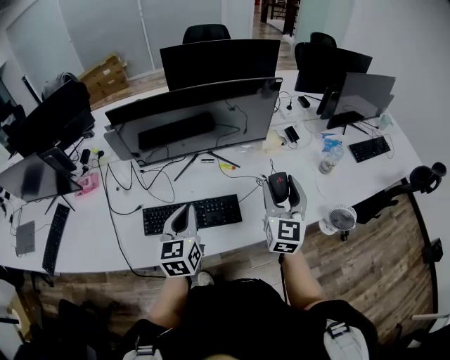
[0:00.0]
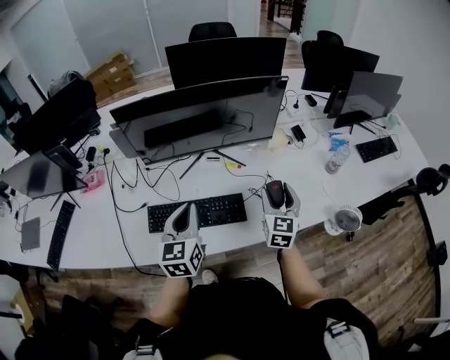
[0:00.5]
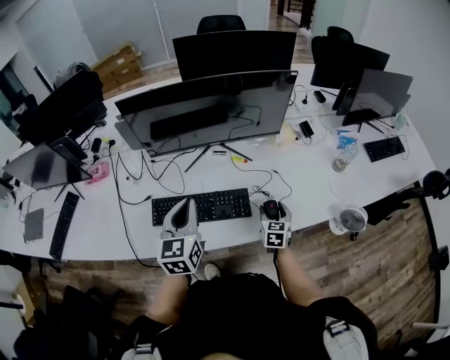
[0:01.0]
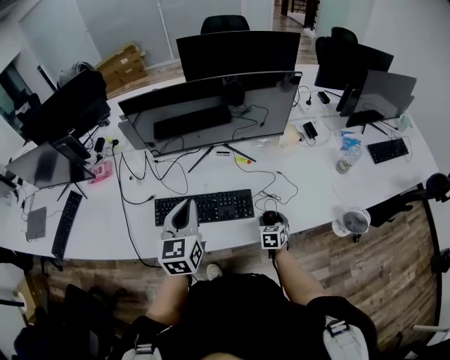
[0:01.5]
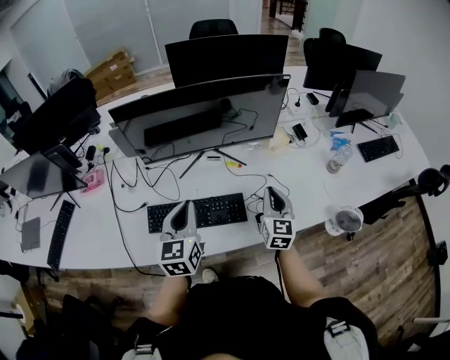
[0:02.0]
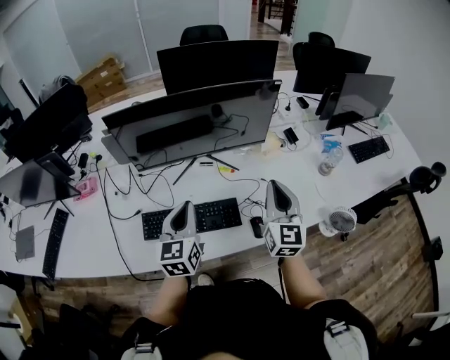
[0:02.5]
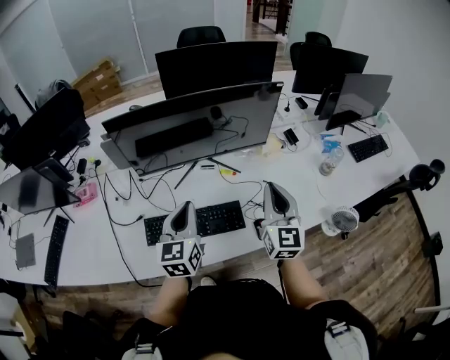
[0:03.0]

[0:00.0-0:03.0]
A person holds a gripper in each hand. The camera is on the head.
0.0 to 1.5 s: The right gripper travels downward by approximately 35 cm, and tips its fingers downward by about 50 degrees.
1.5 to 3.0 s: The right gripper is displaced upward by approximately 35 cm, tips its fingers upward by some 50 degrees, and closes its fingers.

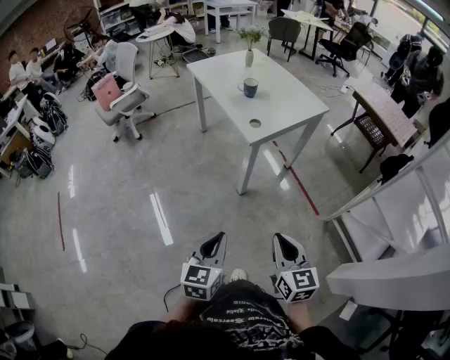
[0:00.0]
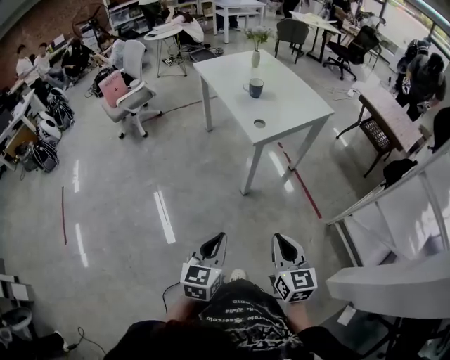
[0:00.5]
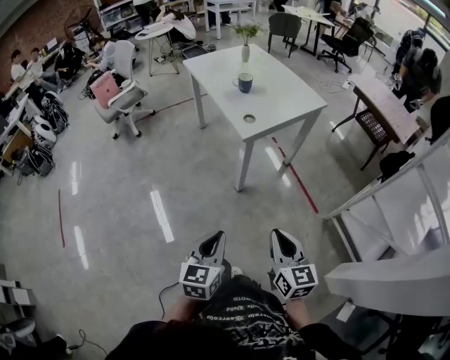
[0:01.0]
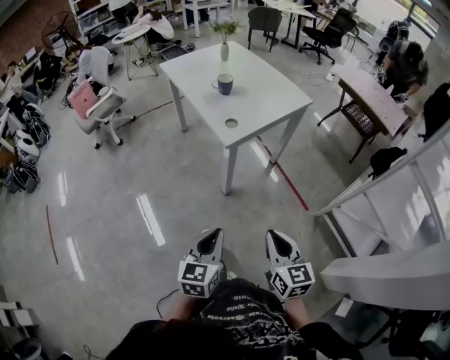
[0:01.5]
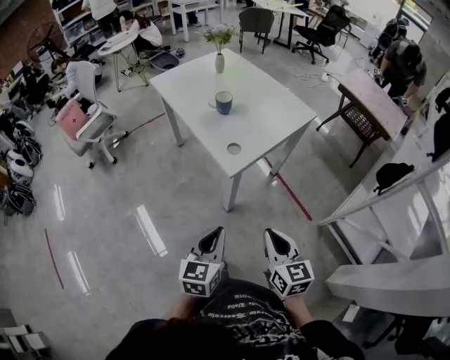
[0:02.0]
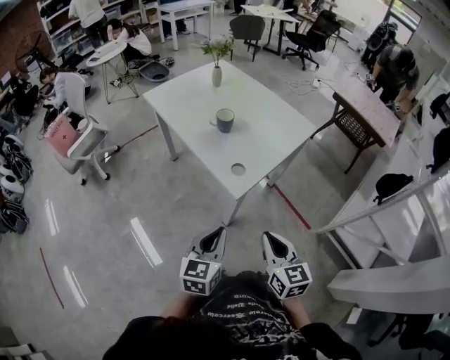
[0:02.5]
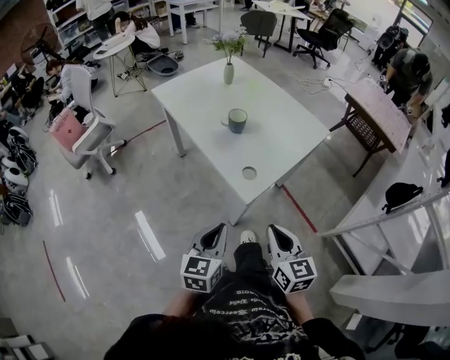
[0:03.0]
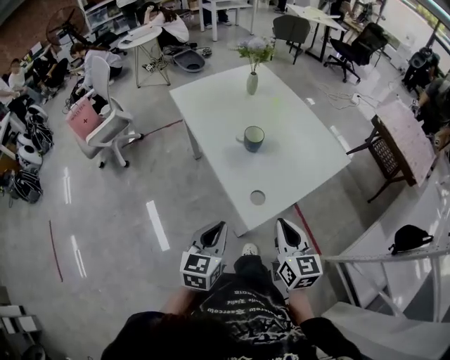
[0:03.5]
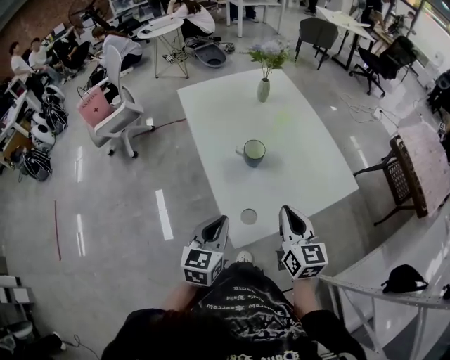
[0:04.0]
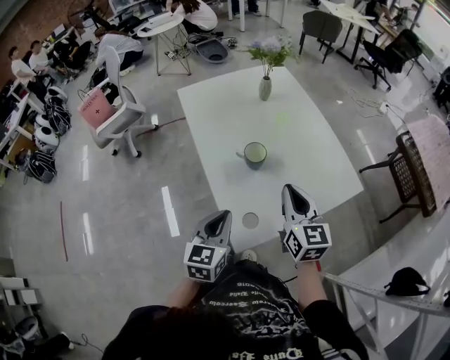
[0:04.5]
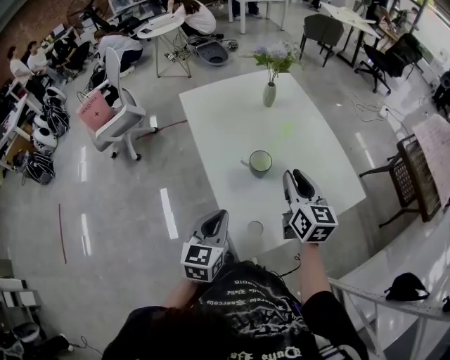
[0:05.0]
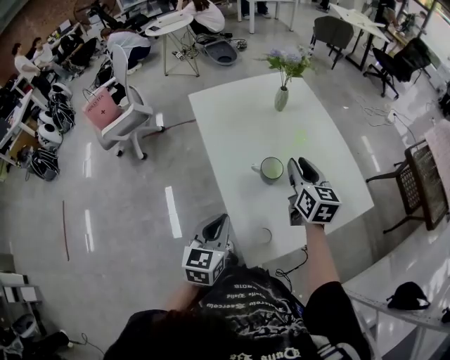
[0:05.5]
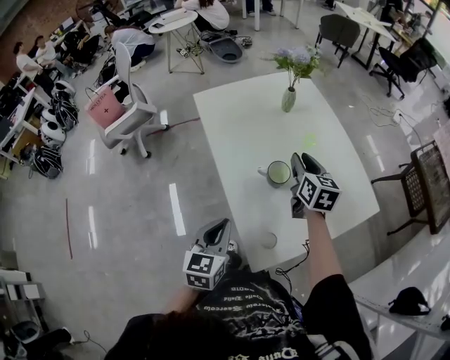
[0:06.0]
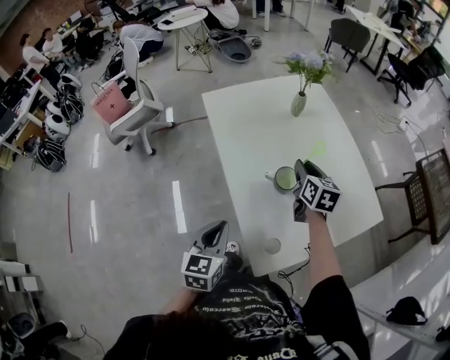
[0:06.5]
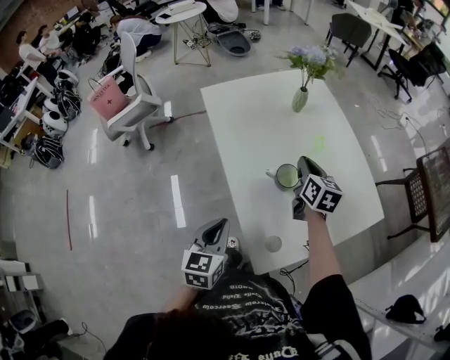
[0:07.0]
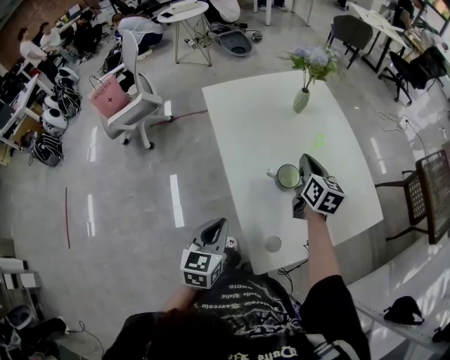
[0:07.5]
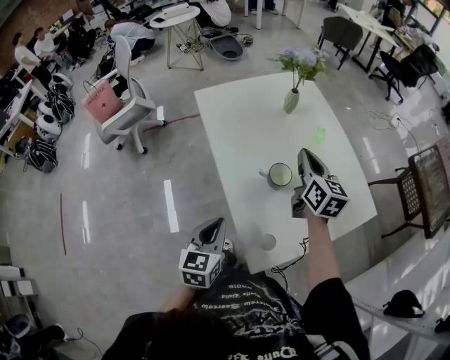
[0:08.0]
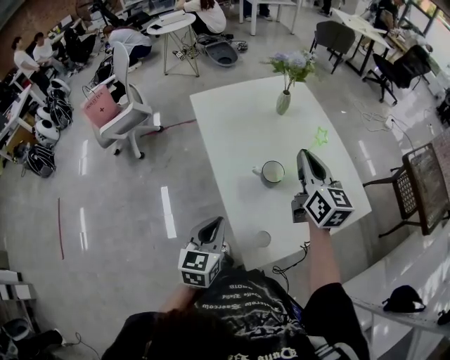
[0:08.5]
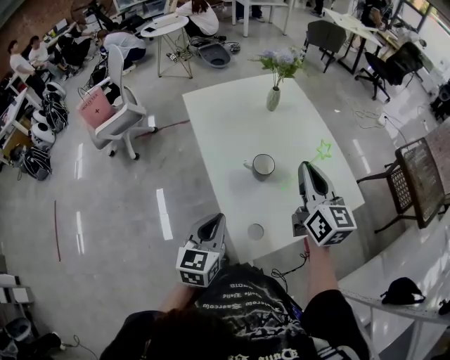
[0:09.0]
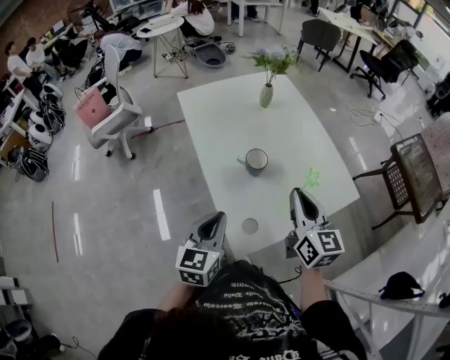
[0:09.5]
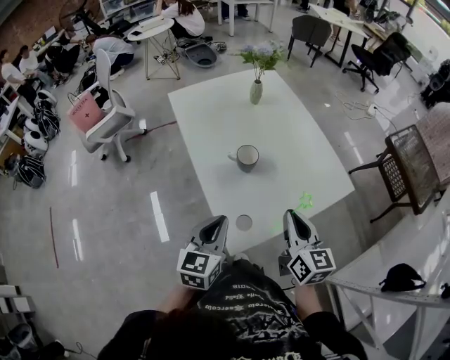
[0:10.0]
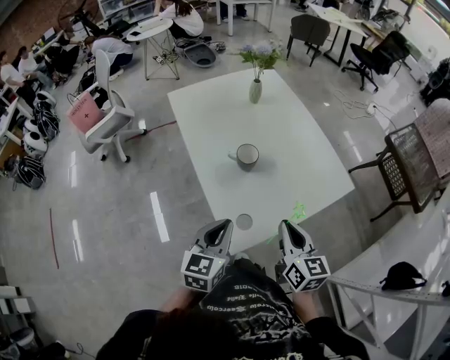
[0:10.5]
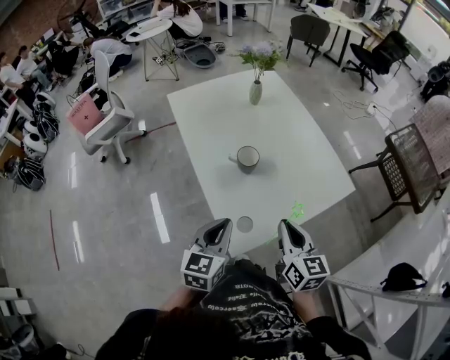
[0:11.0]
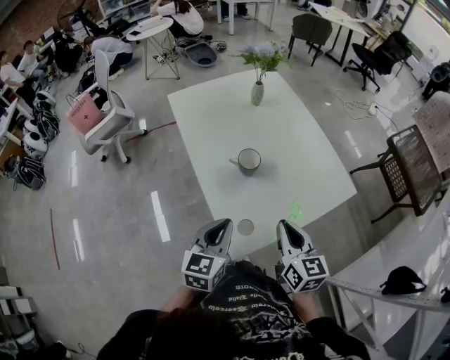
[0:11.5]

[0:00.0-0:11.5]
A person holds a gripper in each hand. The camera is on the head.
0.0 to 2.0 s: Both grippers travel together forward, roughly 35 cm.
2.0 to 4.0 s: Both grippers are carried forward, about 50 cm.
4.0 to 6.0 s: The right gripper shifts about 30 cm forward, and opens its fingers; the left gripper moves forward and to the left, about 15 cm.
6.0 to 7.5 s: The left gripper moves some 5 cm, while the right gripper closes up.
7.5 to 9.5 s: The left gripper moves backward, to the right and upward, roughly 15 cm; the right gripper shifts some 30 cm backward and upward.
9.5 to 11.5 s: The right gripper moves downward and backward, about 10 cm.

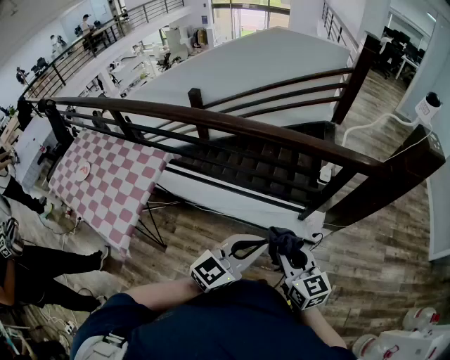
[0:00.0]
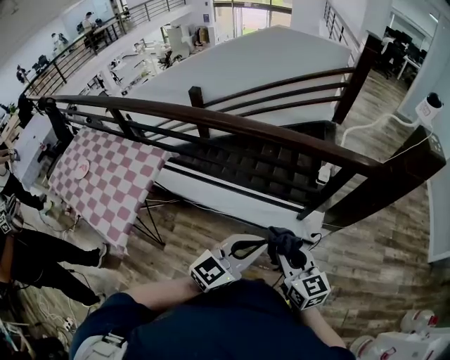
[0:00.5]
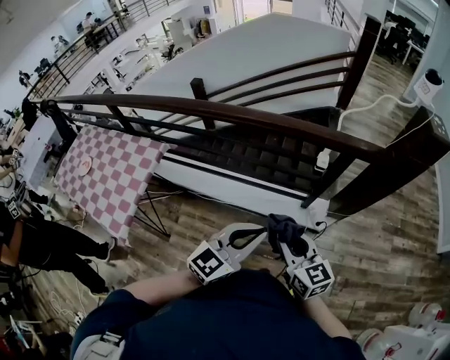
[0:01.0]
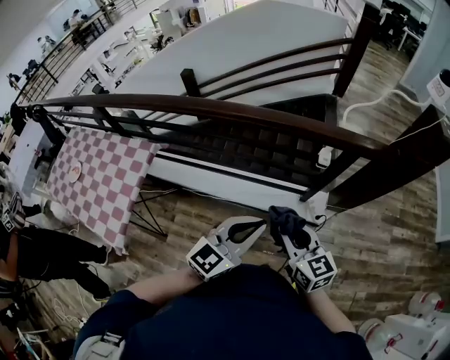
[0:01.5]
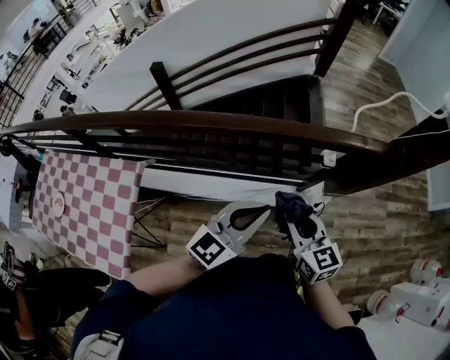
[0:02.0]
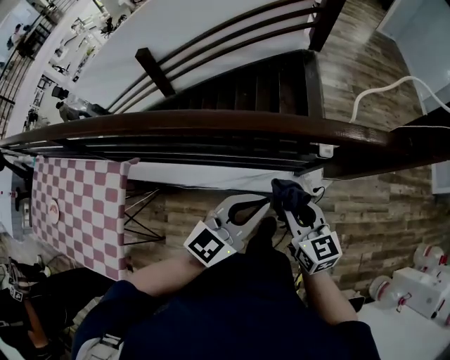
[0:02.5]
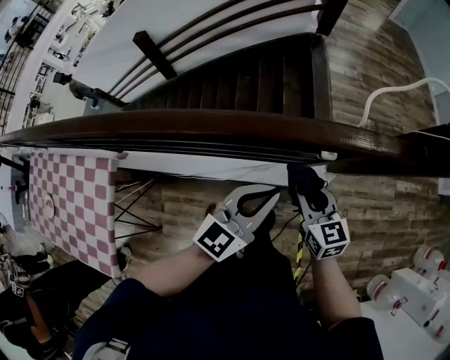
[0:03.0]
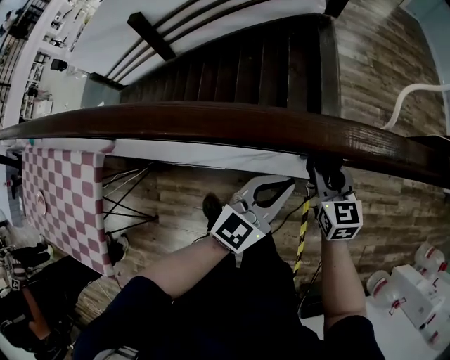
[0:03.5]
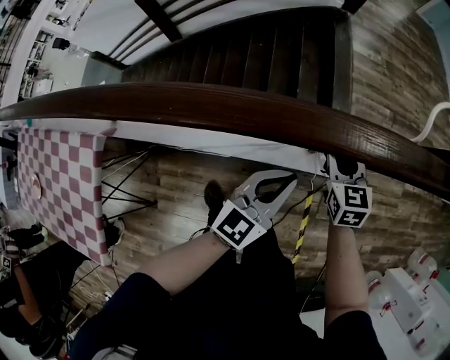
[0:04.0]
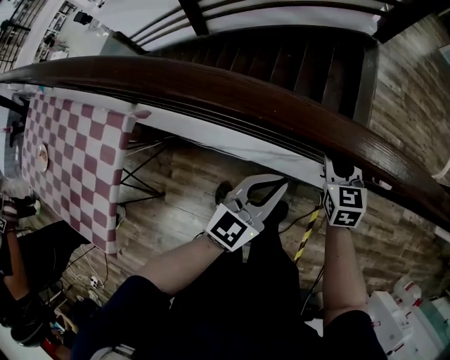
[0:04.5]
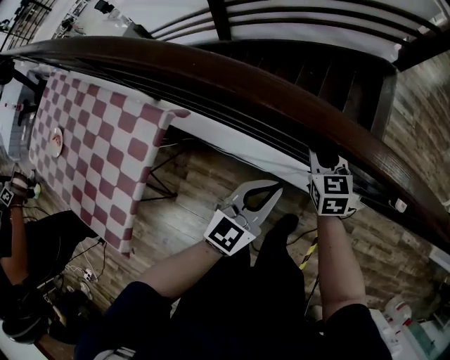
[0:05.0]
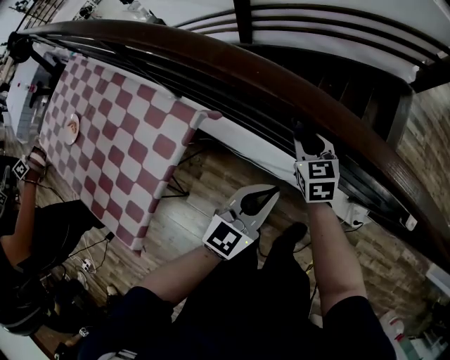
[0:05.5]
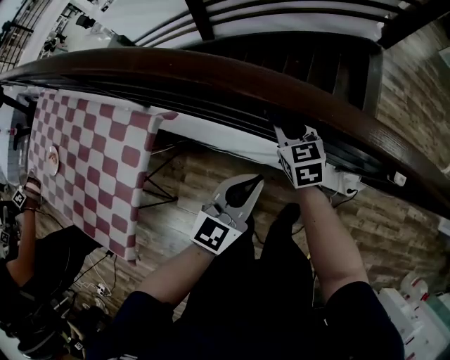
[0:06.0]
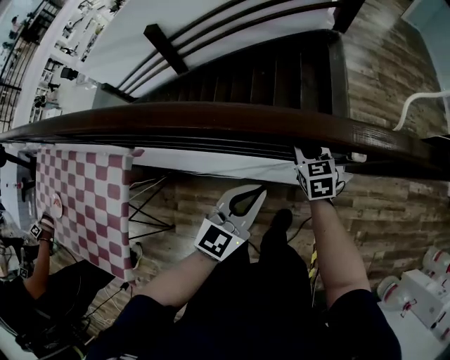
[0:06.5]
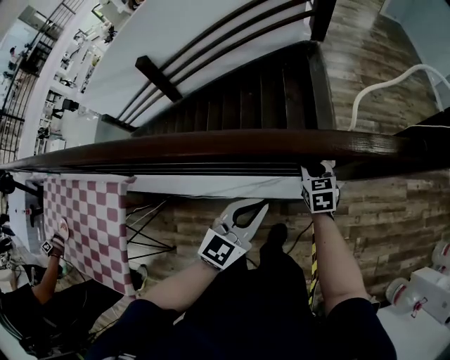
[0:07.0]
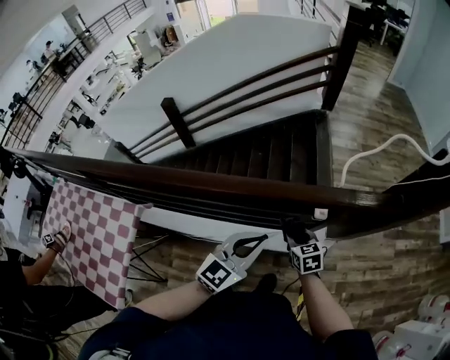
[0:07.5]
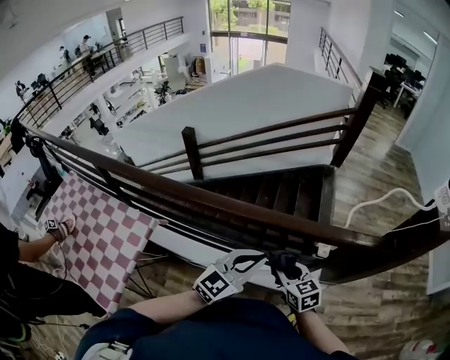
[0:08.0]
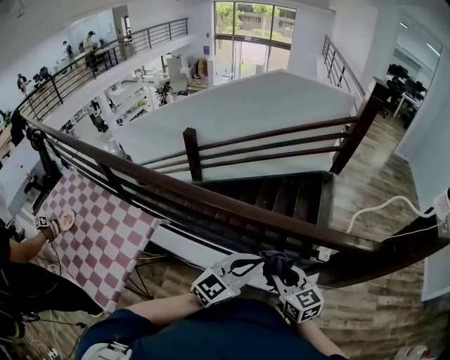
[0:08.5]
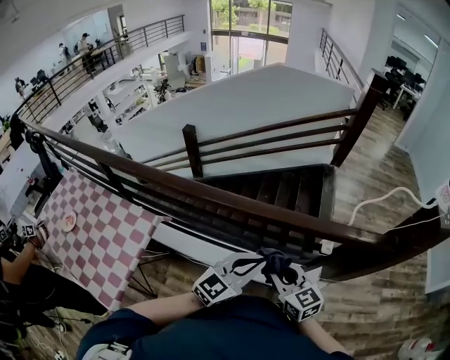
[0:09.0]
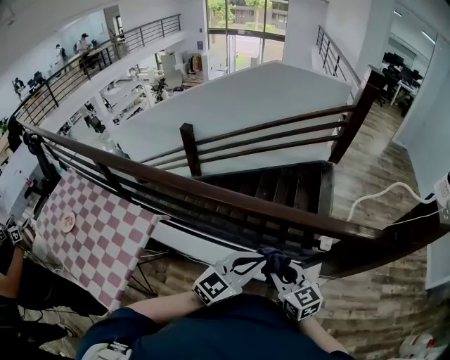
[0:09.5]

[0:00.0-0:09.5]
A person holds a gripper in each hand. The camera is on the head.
0.0 to 2.0 s: The grippers both shift forward by about 20 cm.
2.0 to 4.0 s: The right gripper heads forward and downward, covering some 35 cm, and changes its angle by roughly 20 degrees, while the left gripper travels downward and forward by about 30 cm.
4.0 to 5.5 s: The right gripper ends up roughly 50 cm from where it was, and turns by roughly 30 degrees. Meanwhile the left gripper moves approximately 35 cm, and rotates some 20 degrees.
5.5 to 7.5 s: The left gripper shifts by some 35 cm, and turns by roughly 30 degrees; the right gripper moves some 50 cm, and changes its angle by roughly 20 degrees.
7.5 to 9.5 s: The left gripper heads to the left and backward, covering approximately 10 cm, while the right gripper moves upward, to the left and backward, about 25 cm, and swivels roughly 30 degrees.

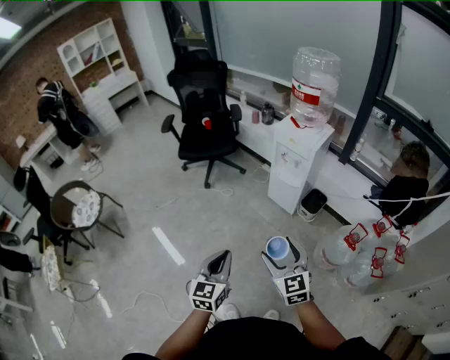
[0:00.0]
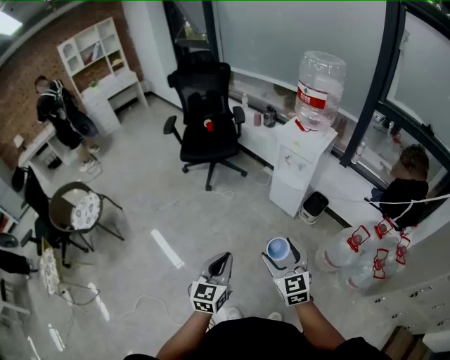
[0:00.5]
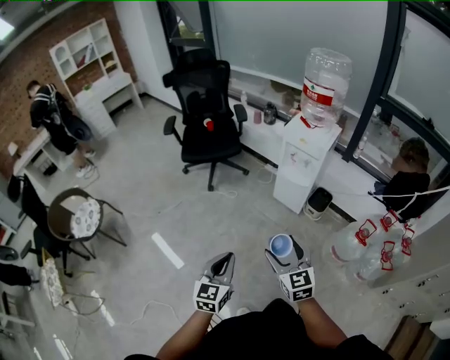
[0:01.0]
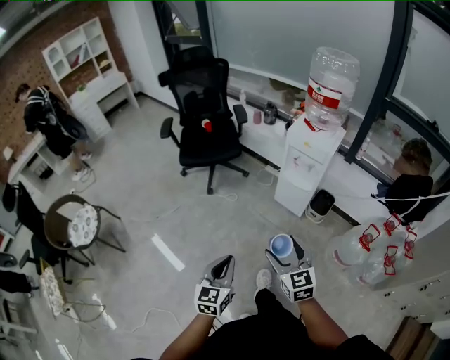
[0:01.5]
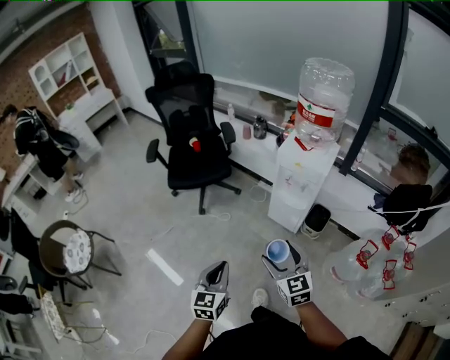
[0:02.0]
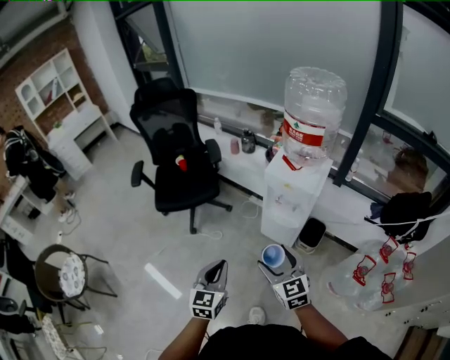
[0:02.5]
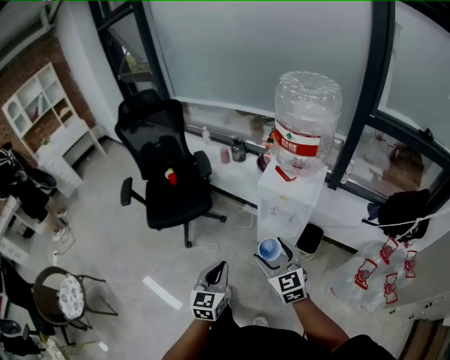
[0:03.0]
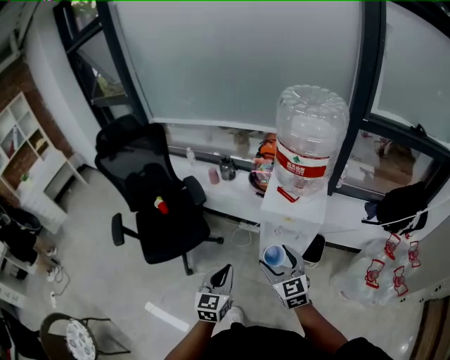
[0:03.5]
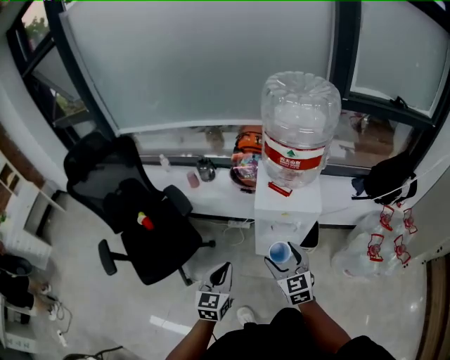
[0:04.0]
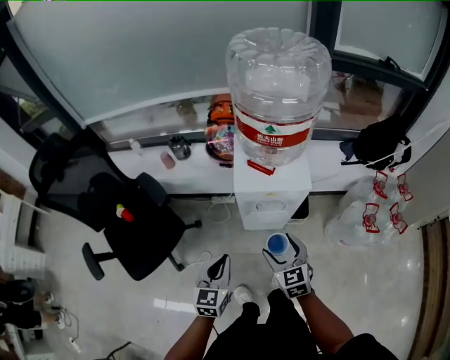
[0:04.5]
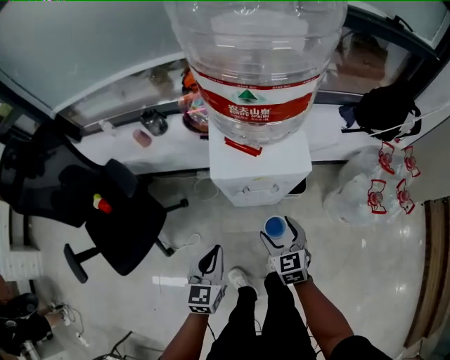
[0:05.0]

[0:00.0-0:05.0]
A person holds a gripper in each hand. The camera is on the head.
0.0 to 2.5 s: Both grippers move forward, roughly 30 cm.
2.5 to 5.0 s: The left gripper moves approximately 35 cm, and swivels some 30 degrees. The right gripper shifts by roughly 30 cm, and changes its angle by roughly 40 degrees.
